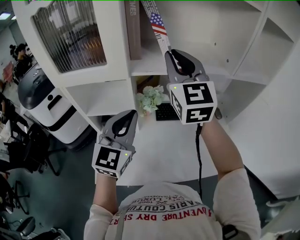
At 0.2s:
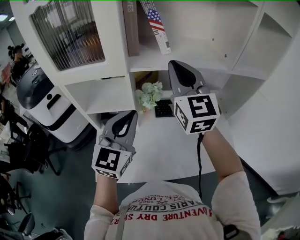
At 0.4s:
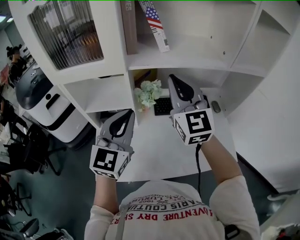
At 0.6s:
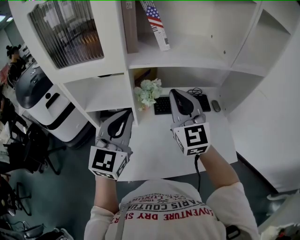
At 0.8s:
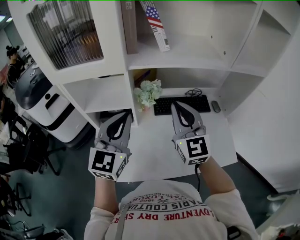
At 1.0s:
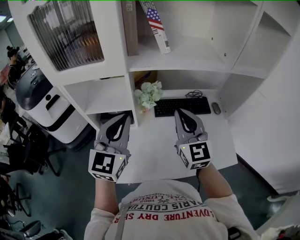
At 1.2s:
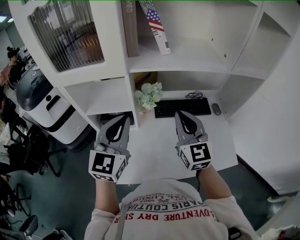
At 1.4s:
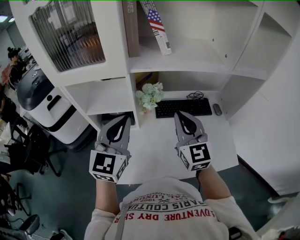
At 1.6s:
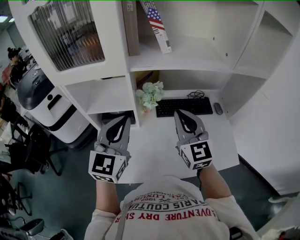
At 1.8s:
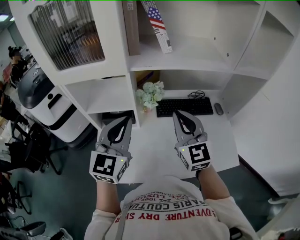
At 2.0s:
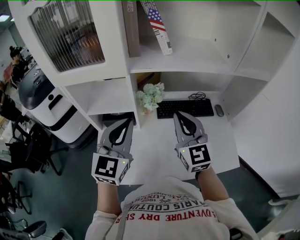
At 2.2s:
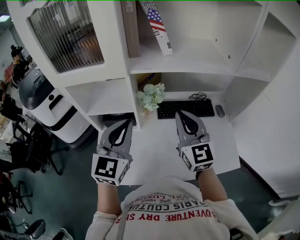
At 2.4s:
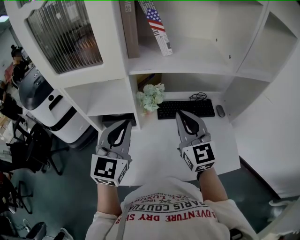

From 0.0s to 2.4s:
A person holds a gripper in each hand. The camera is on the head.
From 0.0s to 1.2s: The right gripper shifts some 20 cm downward and backward.
From 1.2s to 2.4s: The grippers move only a little.

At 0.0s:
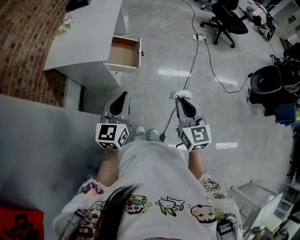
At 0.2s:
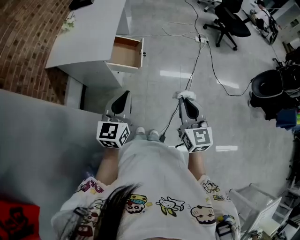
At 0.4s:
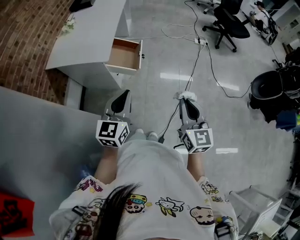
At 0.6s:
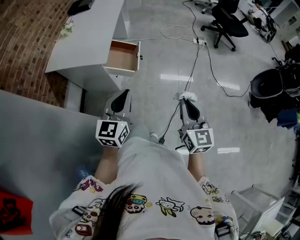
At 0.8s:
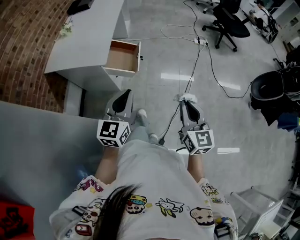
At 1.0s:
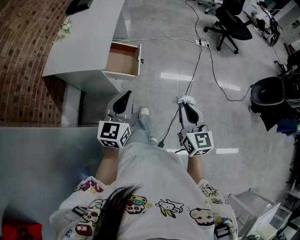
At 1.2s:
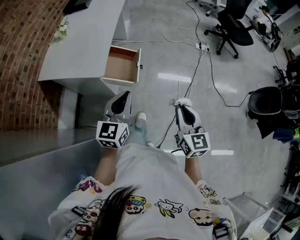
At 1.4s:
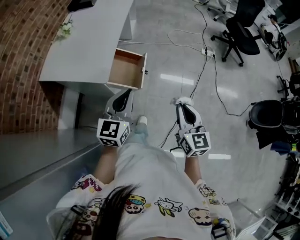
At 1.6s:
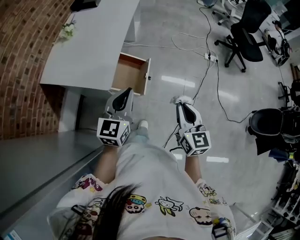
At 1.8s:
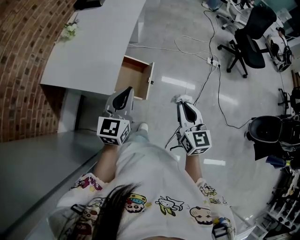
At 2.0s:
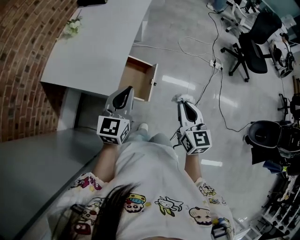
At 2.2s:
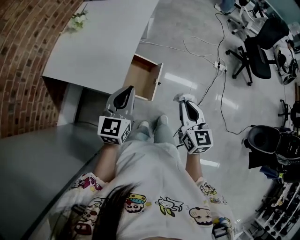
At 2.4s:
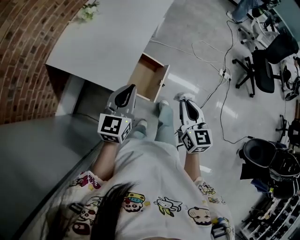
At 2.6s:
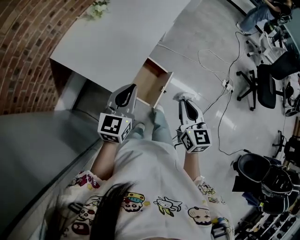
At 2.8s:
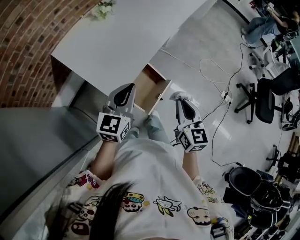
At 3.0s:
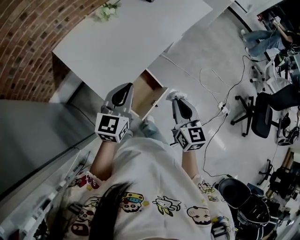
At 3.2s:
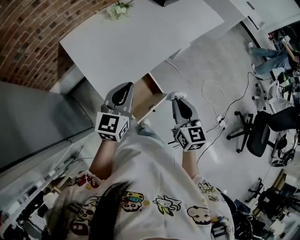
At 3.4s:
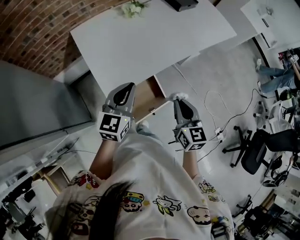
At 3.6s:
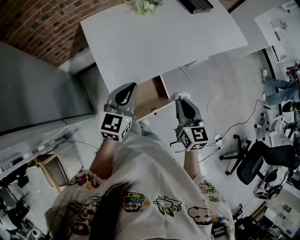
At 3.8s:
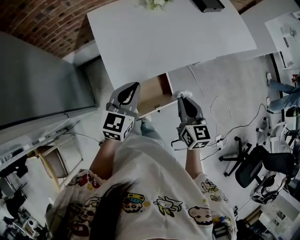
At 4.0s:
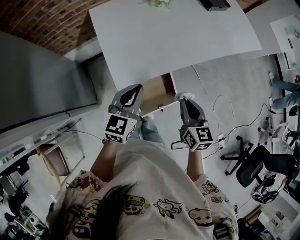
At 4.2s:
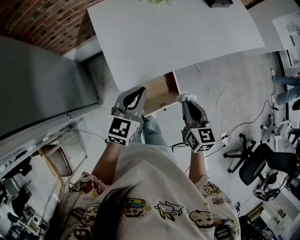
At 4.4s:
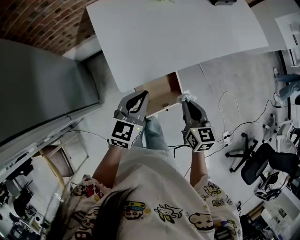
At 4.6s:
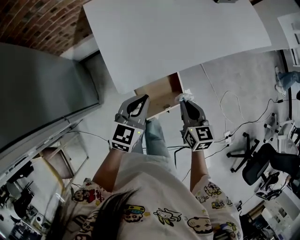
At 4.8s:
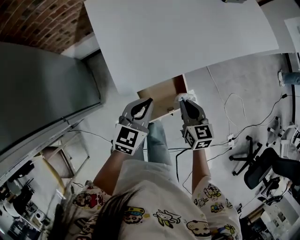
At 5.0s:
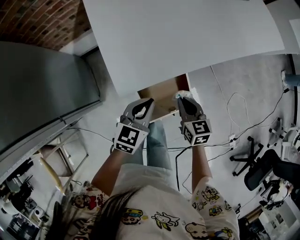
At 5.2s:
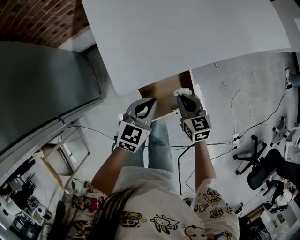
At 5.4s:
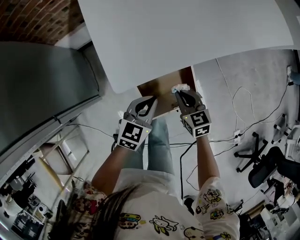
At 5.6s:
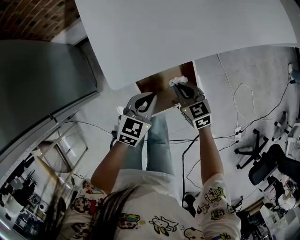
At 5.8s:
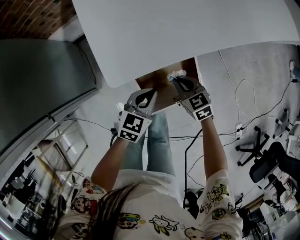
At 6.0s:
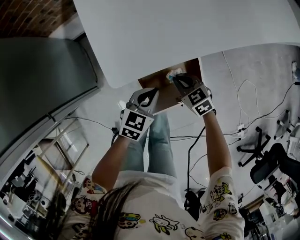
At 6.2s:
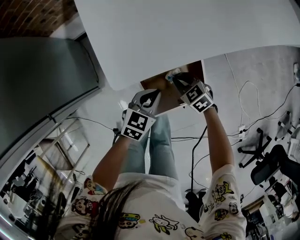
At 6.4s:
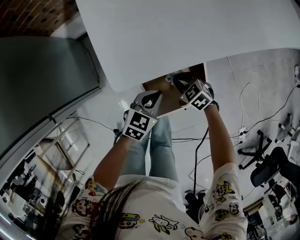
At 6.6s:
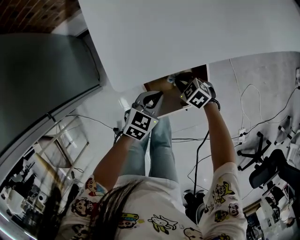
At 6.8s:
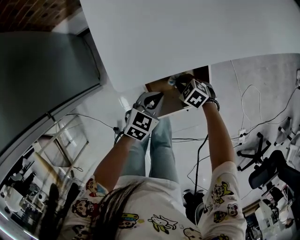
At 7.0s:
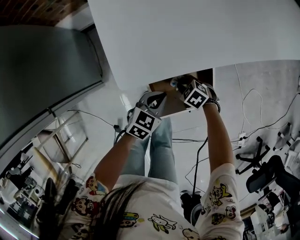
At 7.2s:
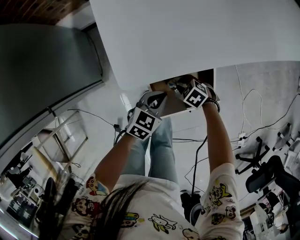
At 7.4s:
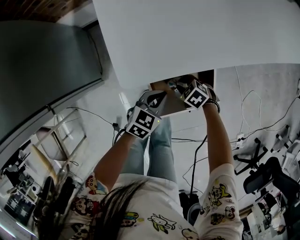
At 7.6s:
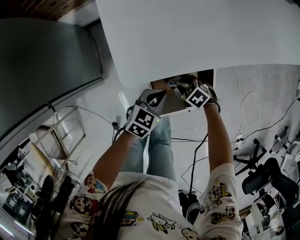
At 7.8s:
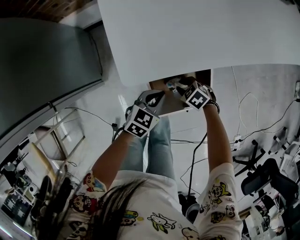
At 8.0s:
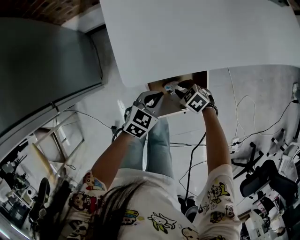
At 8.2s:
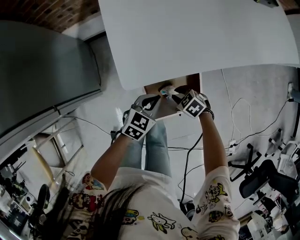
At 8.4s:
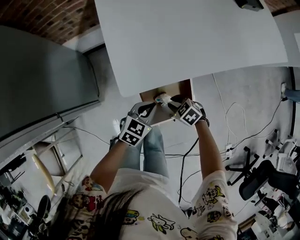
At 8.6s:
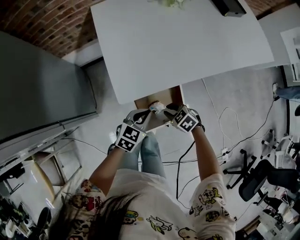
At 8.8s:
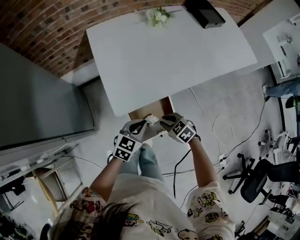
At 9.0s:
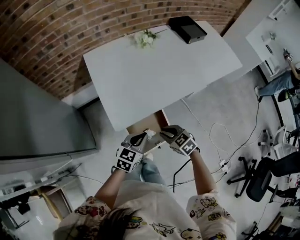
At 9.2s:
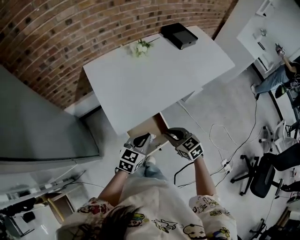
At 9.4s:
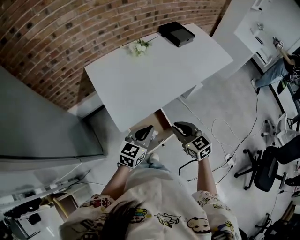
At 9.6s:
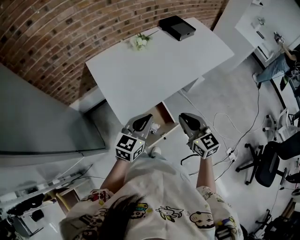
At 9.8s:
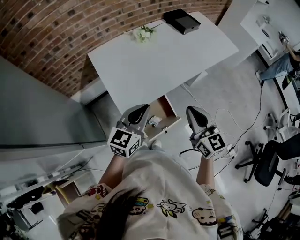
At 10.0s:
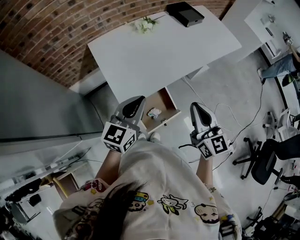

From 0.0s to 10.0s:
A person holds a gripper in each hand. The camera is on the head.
From 0.0s to 1.4s: Both grippers move forward, approximately 20 cm.
From 1.4s to 2.8s: The left gripper travels forward and to the left by some 20 cm, and turns by some 20 degrees, while the right gripper heads forward, covering roughly 30 cm, and turns by roughly 30 degrees.
From 2.8s to 4.2s: The left gripper goes roughly 5 cm downward, and swivels about 30 degrees; the right gripper ends up roughly 15 cm from where it was, and swivels roughly 30 degrees.
From 4.2s to 5.8s: Both grippers travel together downward, about 30 cm. The right gripper changes its angle by about 40 degrees.
From 5.8s to 7.2s: The left gripper shifts approximately 5 cm downward. Meanwhile the right gripper goes about 15 cm downward, and swivels roughly 40 degrees.
From 7.2s to 8.6s: Both grippers move upward, about 15 cm.
From 8.6s to 10.0s: The grippers both shift upward by some 35 cm. The left gripper rotates some 30 degrees; the right gripper angles its fingers upward, by some 60 degrees, and closes its fingers.

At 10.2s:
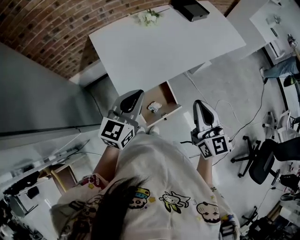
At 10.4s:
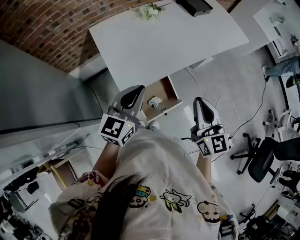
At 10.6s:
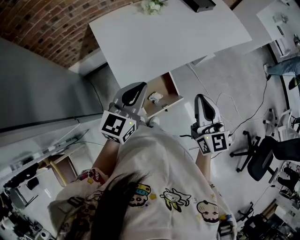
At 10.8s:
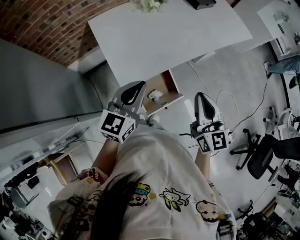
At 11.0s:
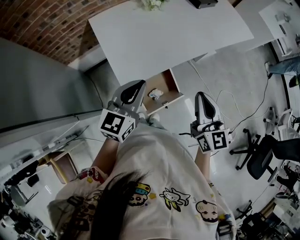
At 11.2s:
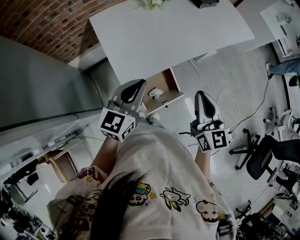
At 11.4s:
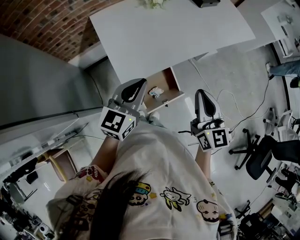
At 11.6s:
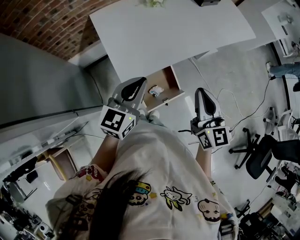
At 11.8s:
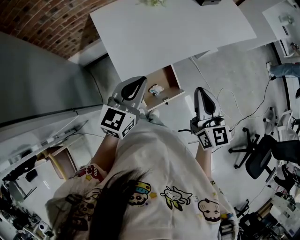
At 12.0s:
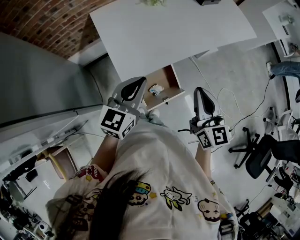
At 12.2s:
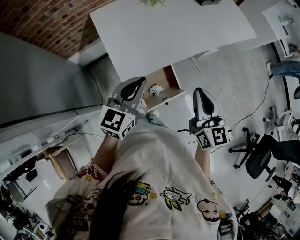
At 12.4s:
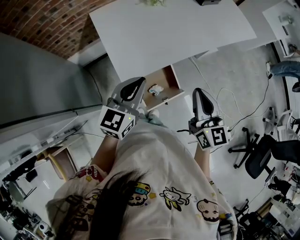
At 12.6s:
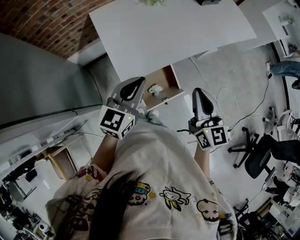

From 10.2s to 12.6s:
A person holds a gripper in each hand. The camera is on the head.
From 10.2s to 11.4s: The grippers make only small movements.
From 11.4s to 12.6s: Both grippers stay put.

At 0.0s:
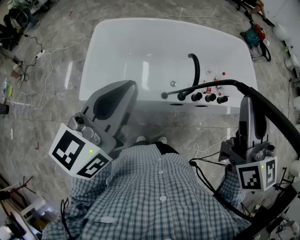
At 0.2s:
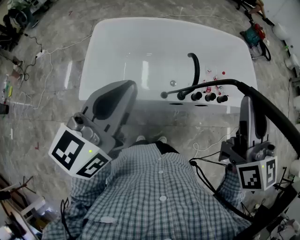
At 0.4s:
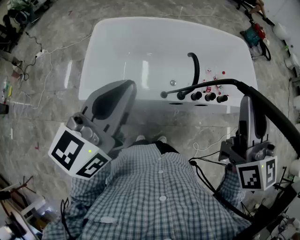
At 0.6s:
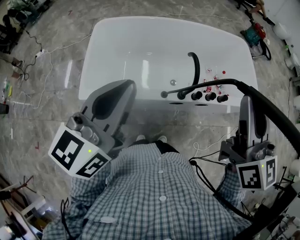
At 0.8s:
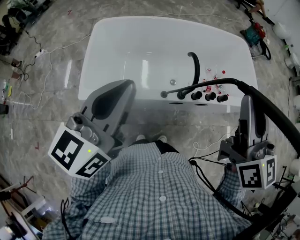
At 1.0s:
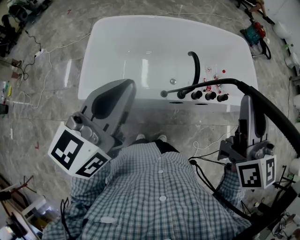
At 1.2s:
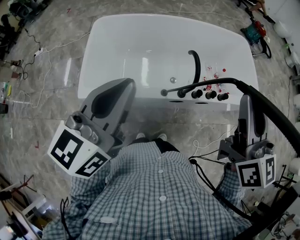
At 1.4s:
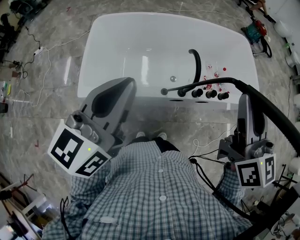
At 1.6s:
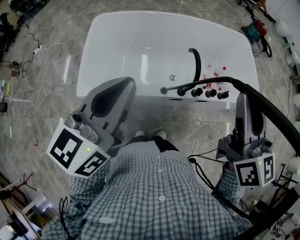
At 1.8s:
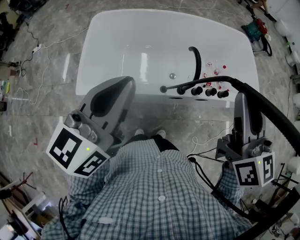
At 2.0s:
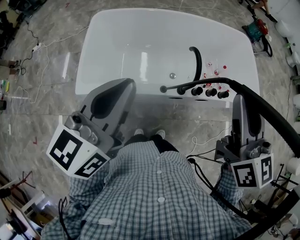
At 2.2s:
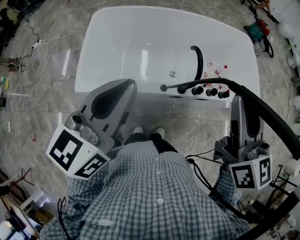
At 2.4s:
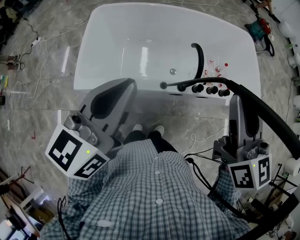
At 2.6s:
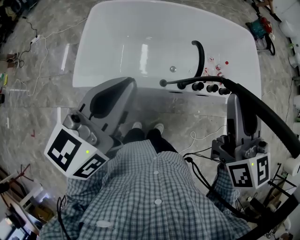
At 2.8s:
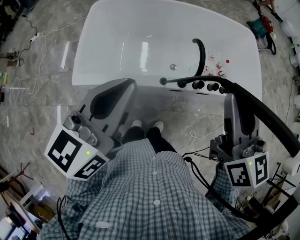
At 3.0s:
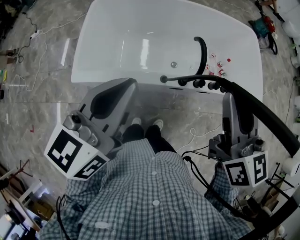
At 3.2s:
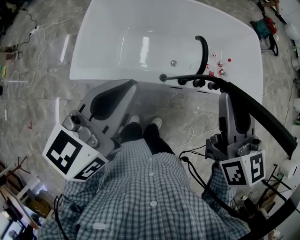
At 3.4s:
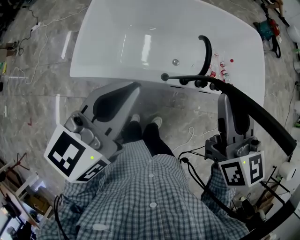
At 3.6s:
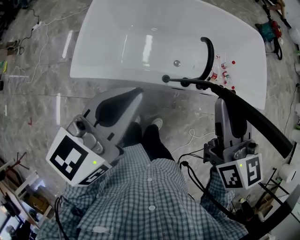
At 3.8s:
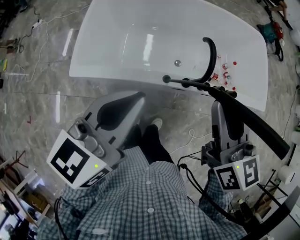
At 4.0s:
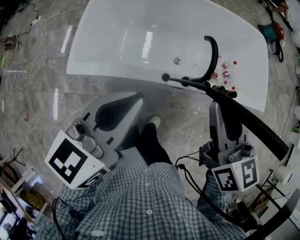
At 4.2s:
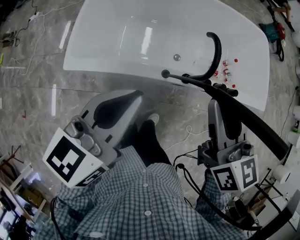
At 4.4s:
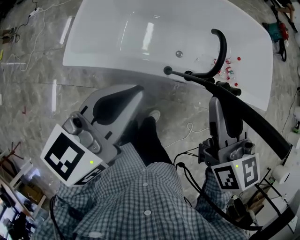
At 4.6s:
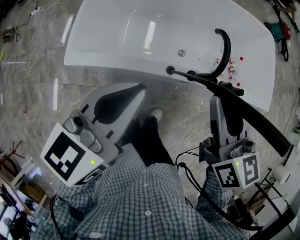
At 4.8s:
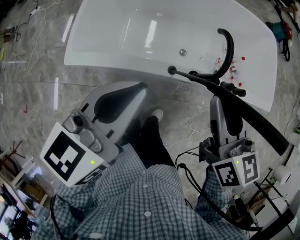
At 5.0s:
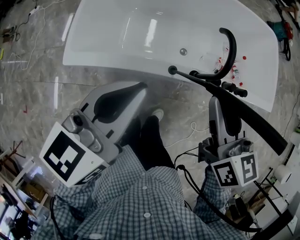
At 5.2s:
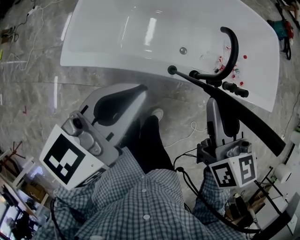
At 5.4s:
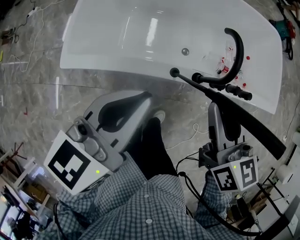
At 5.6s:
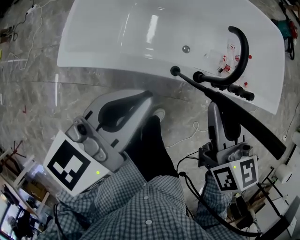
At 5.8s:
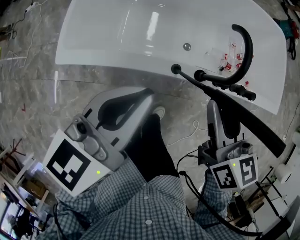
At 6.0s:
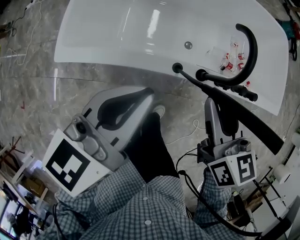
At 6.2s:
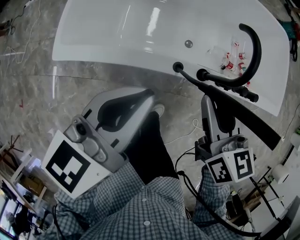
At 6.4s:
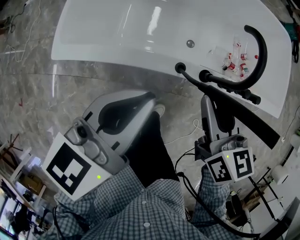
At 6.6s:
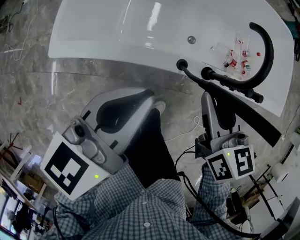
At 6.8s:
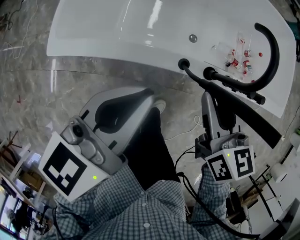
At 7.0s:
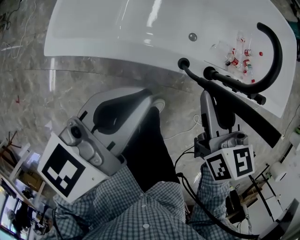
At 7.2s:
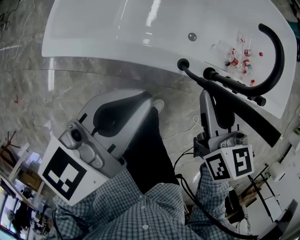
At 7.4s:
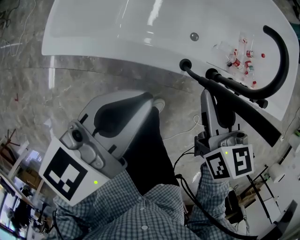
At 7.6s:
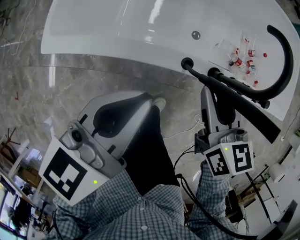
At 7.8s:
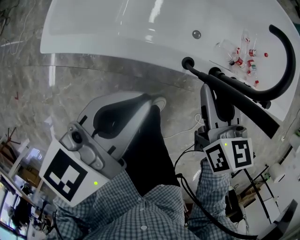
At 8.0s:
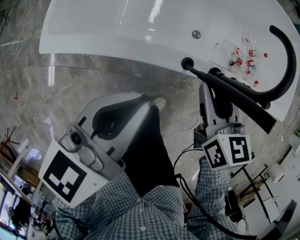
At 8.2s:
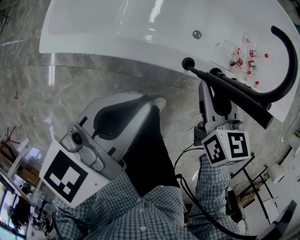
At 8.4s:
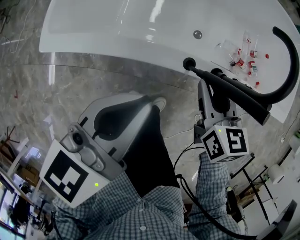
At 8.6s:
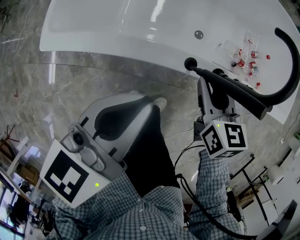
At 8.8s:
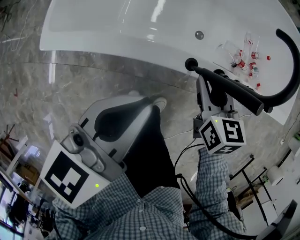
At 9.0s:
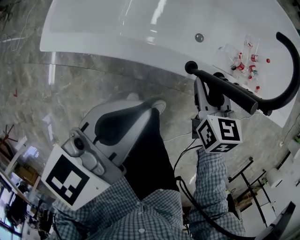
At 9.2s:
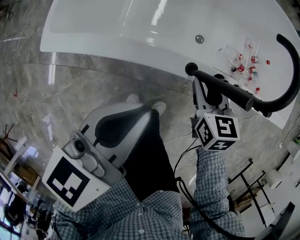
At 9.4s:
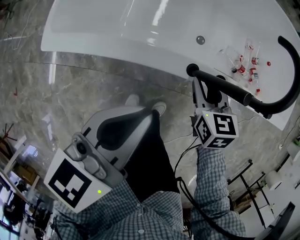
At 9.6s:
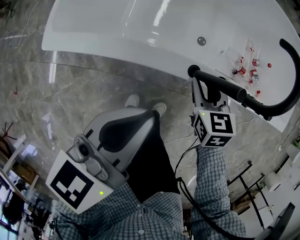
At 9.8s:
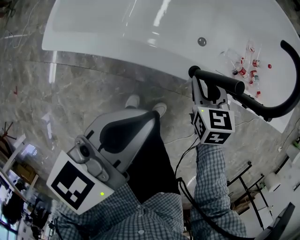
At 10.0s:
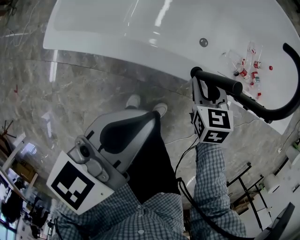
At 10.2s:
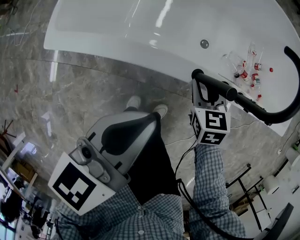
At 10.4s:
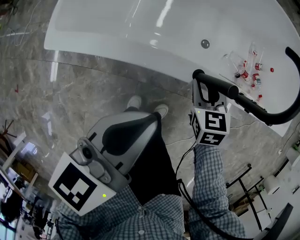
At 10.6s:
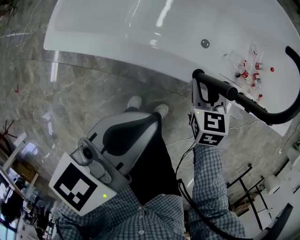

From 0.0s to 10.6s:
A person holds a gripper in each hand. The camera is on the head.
From 0.0s to 1.6s: The grippers make only small movements.
From 1.6s to 3.0s: The right gripper moves downward, approximately 5 cm.
From 3.0s to 4.6s: Both grippers move downward, about 10 cm.
From 4.6s to 6.0s: The grippers both shift downward by about 10 cm.
From 6.0s to 7.6s: Both grippers move downward, roughly 10 cm.
From 7.6s to 9.0s: The right gripper shifts about 10 cm downward.
From 9.0s to 10.6s: The right gripper travels downward by about 5 cm.
